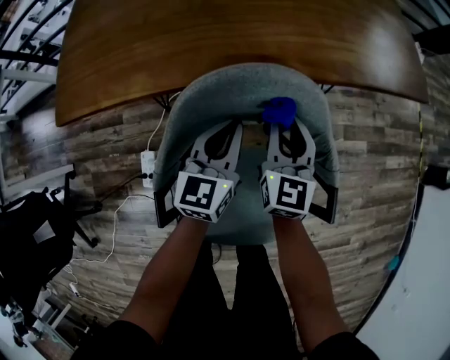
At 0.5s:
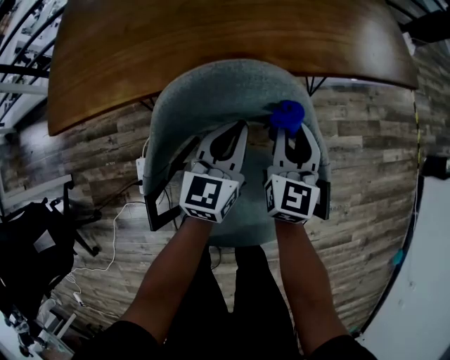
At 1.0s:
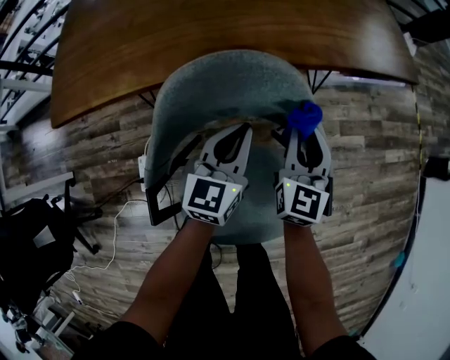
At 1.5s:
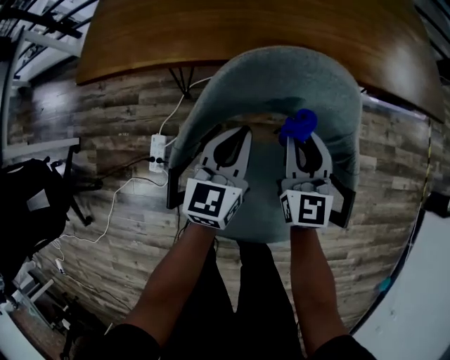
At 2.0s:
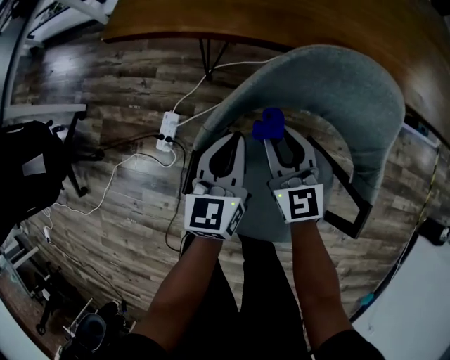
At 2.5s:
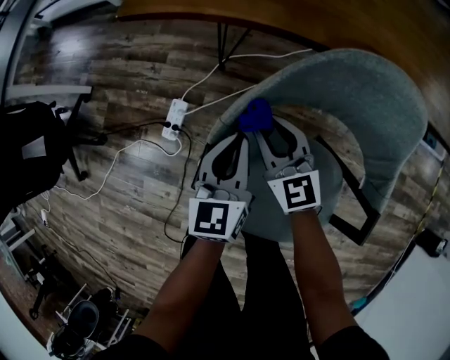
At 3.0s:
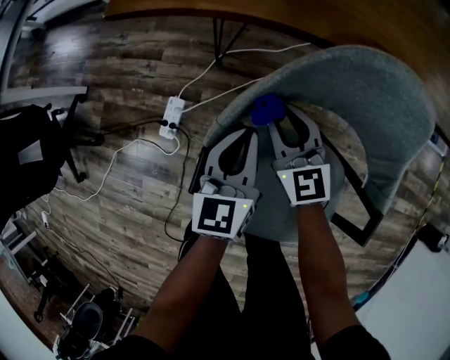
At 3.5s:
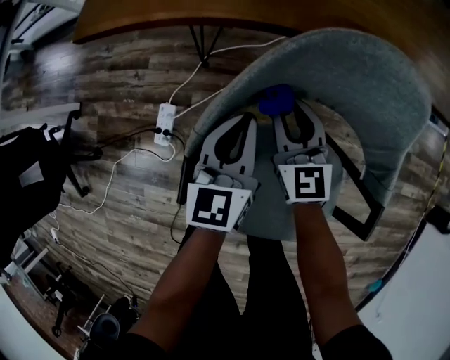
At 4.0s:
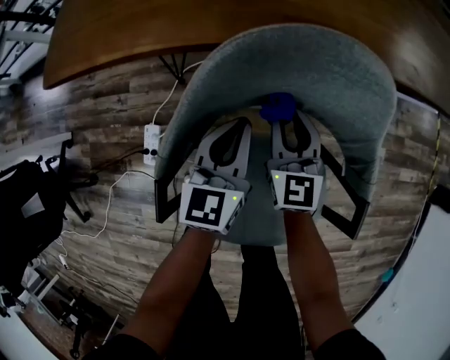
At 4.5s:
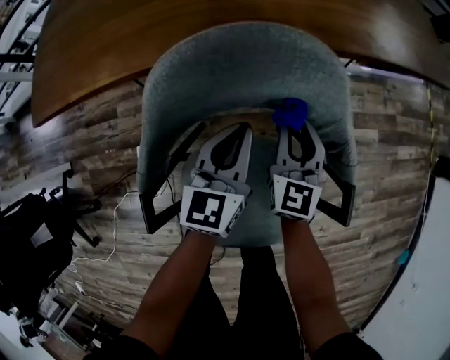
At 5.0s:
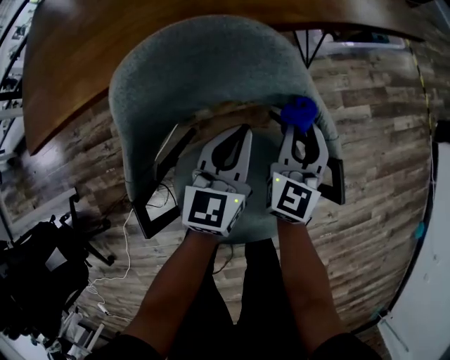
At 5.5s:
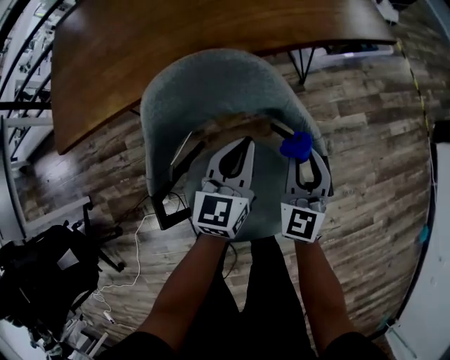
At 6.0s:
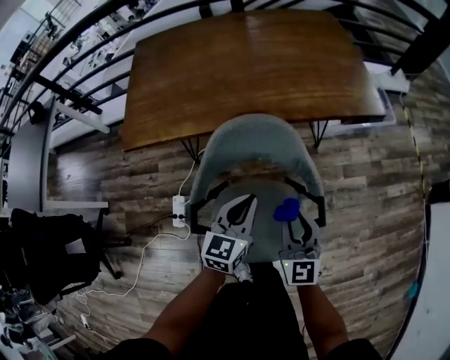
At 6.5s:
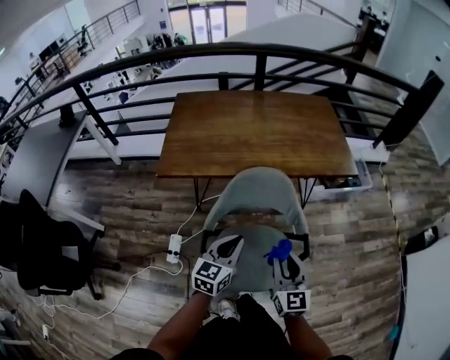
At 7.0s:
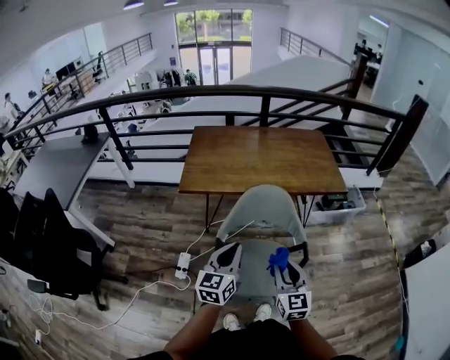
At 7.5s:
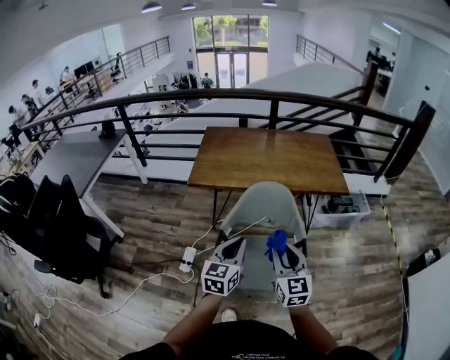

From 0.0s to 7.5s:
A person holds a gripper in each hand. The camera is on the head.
From 0.0s to 2.0s: The right gripper moves some 20 cm, and turns by approximately 40 degrees. Meanwhile the left gripper ends up about 15 cm from where it was, and changes its angle by about 30 degrees.
From 2.0s to 4.0s: The left gripper moves some 10 cm, while the right gripper moves roughly 15 cm, and rotates approximately 20 degrees.
From 4.0s to 5.5s: The right gripper ends up some 25 cm from where it was, and rotates approximately 30 degrees, while the left gripper shifts by some 15 cm.
From 5.5s to 7.5s: Both grippers move upward, some 35 cm. The right gripper rotates roughly 30 degrees.

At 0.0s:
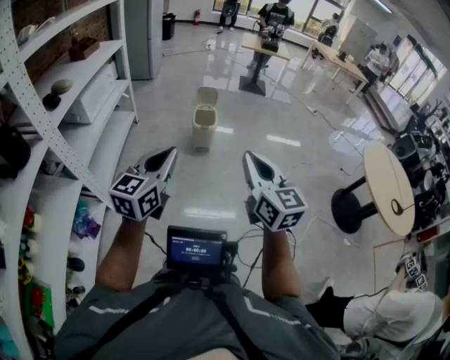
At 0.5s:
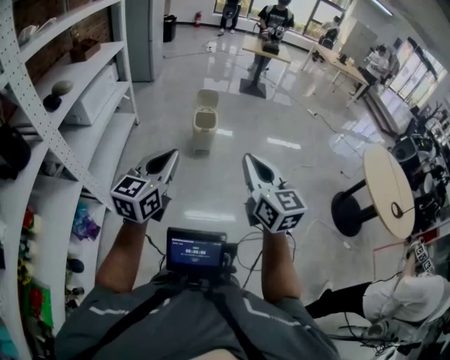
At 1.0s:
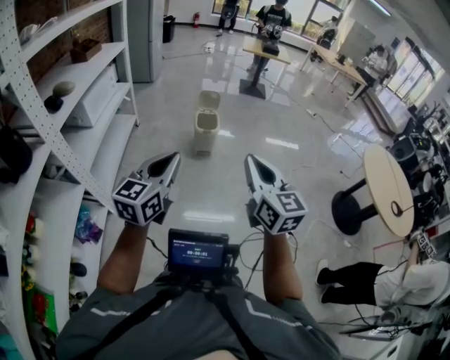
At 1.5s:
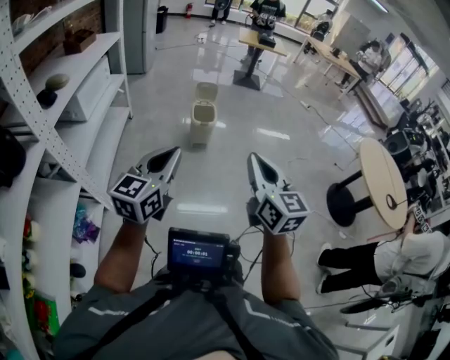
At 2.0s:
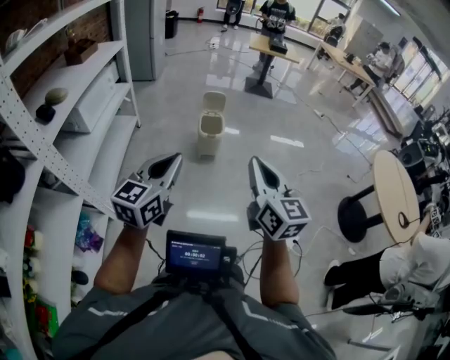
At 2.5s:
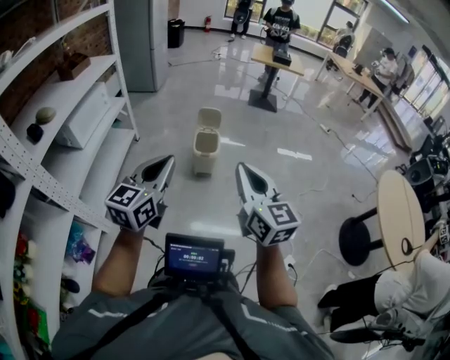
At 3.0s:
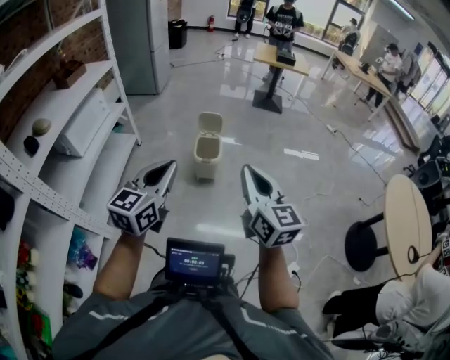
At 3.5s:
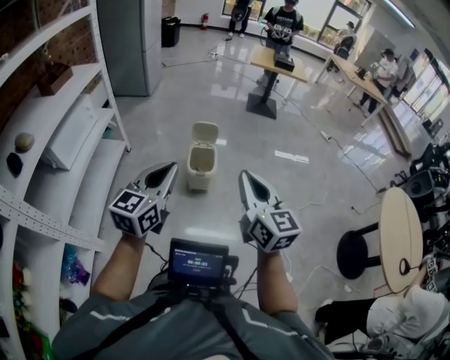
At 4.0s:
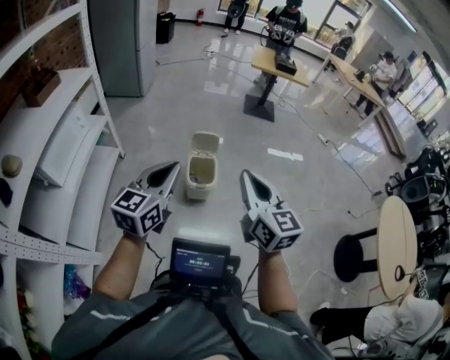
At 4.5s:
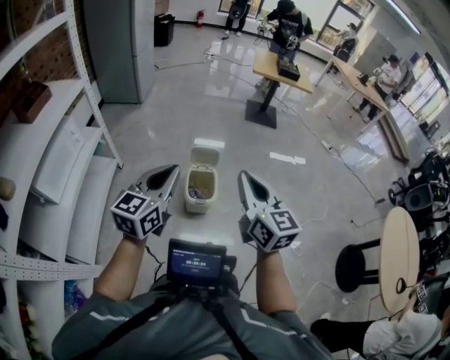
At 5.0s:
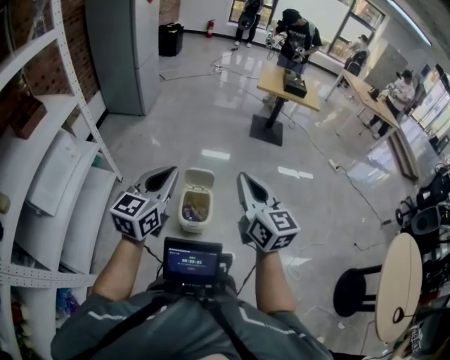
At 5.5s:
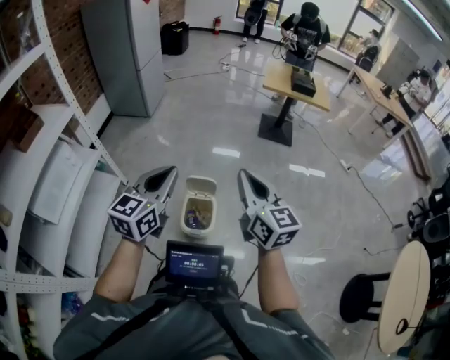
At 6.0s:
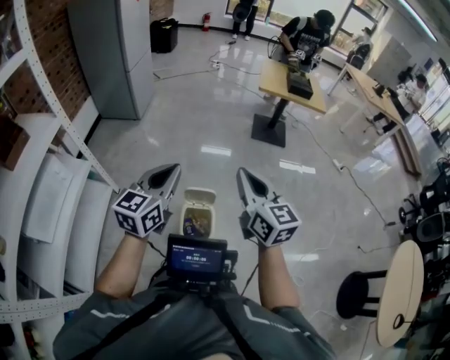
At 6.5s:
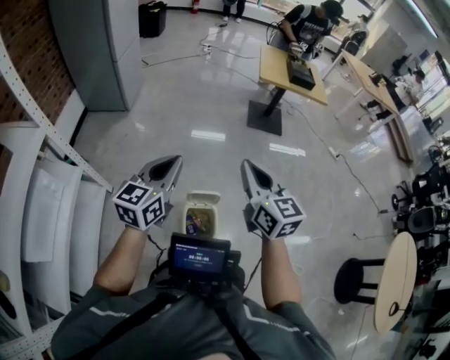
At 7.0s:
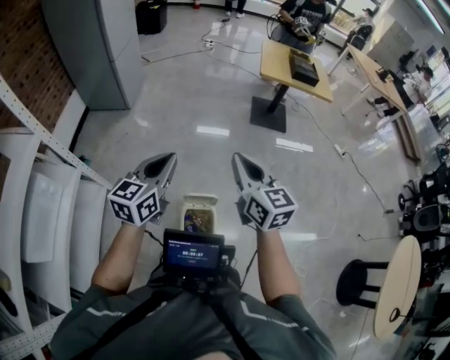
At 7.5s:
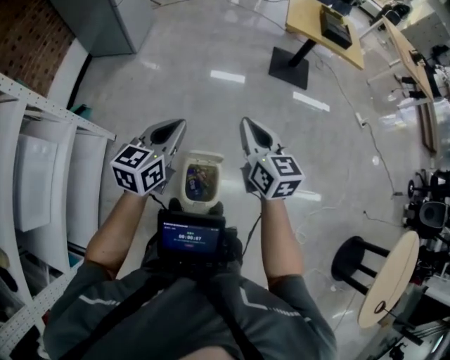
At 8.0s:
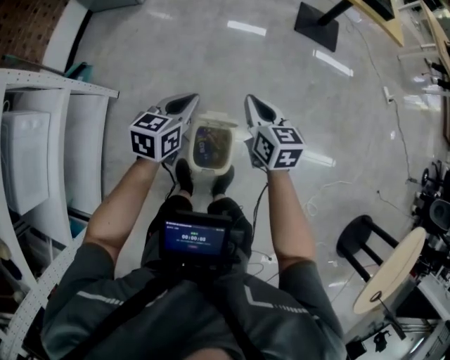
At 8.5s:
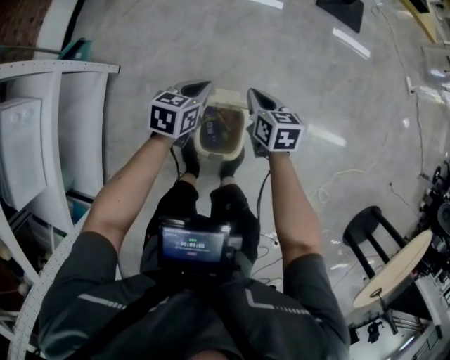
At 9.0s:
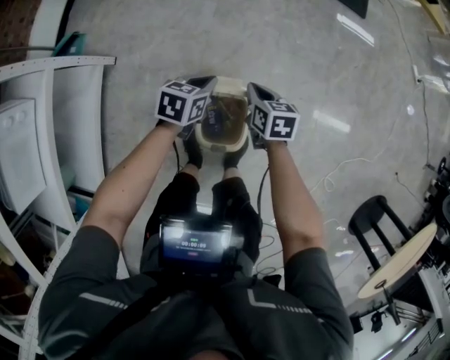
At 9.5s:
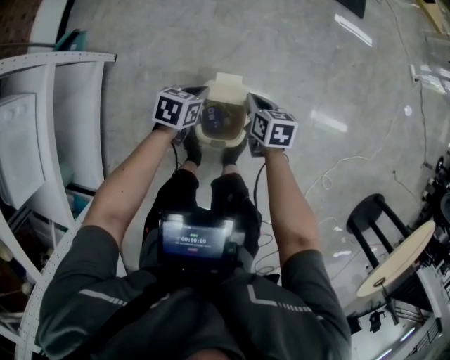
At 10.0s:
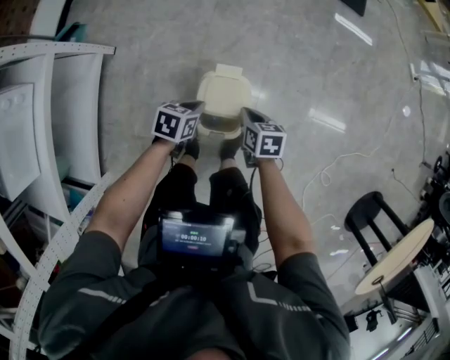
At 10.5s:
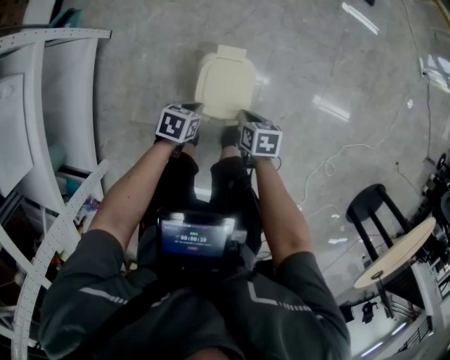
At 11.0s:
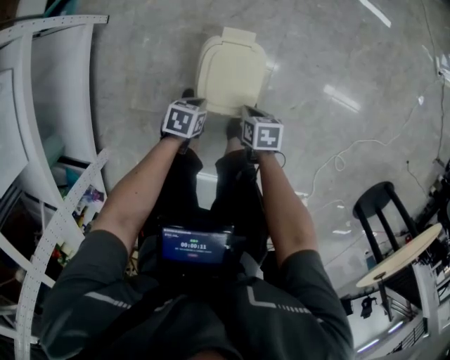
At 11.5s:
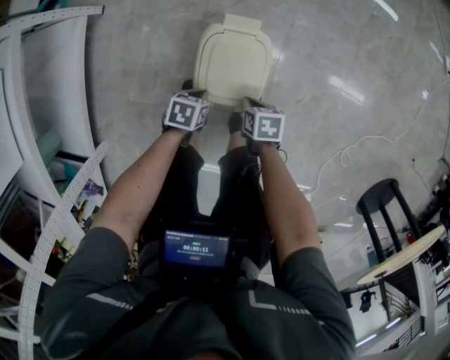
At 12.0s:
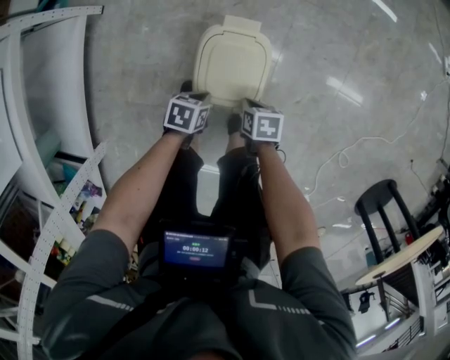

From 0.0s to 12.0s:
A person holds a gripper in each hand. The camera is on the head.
From 0.0s to 2.0s: The two grippers go roughly 10 cm forward.
From 2.0s to 4.0s: The grippers both shift forward by about 35 cm.
From 4.0s to 6.0s: The grippers both shift forward by approximately 35 cm.
From 6.0s to 8.0s: Both grippers move downward and forward, roughly 30 cm. The right gripper rotates approximately 30 degrees, while the left gripper swivels about 30 degrees.
From 8.0s to 10.0s: The two grippers go about 30 cm downward and backward. The left gripper rotates approximately 30 degrees, while the right gripper swivels roughly 30 degrees.
From 10.0s to 12.0s: Both grippers move downward, some 15 cm.

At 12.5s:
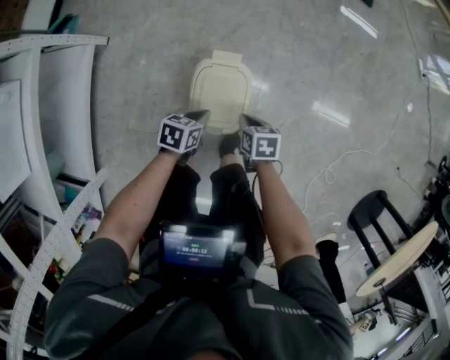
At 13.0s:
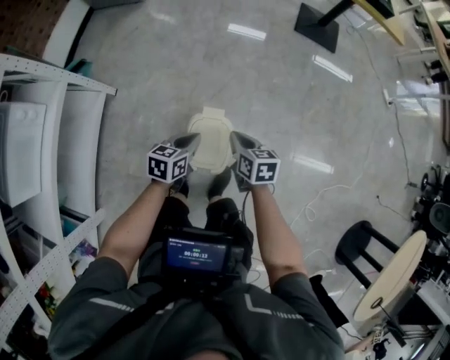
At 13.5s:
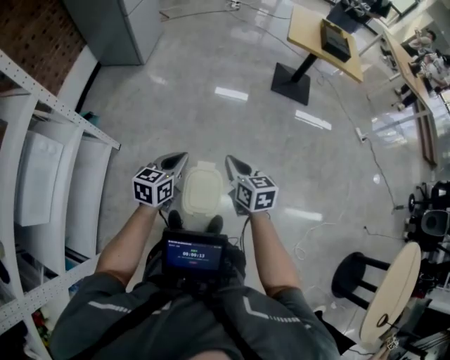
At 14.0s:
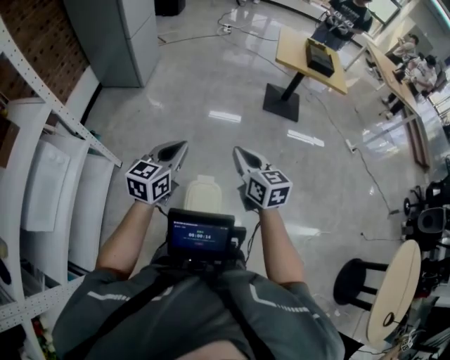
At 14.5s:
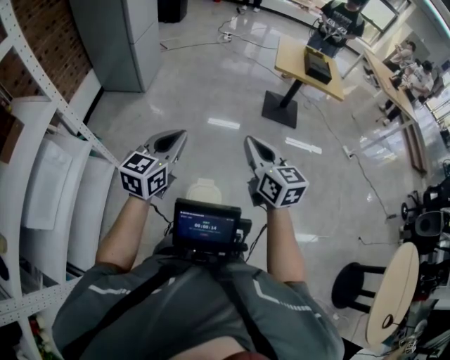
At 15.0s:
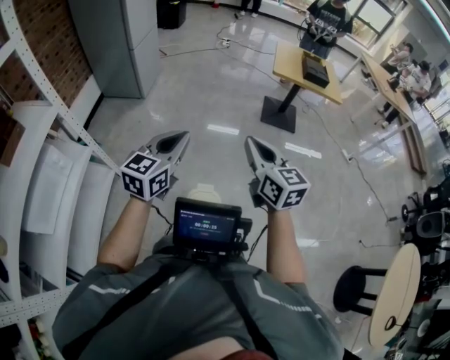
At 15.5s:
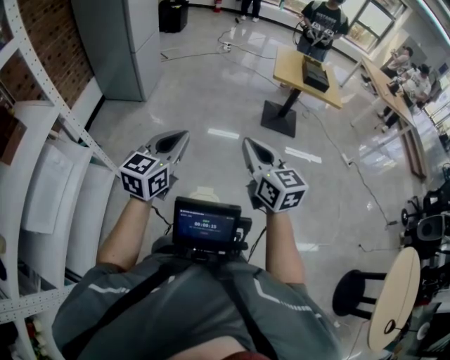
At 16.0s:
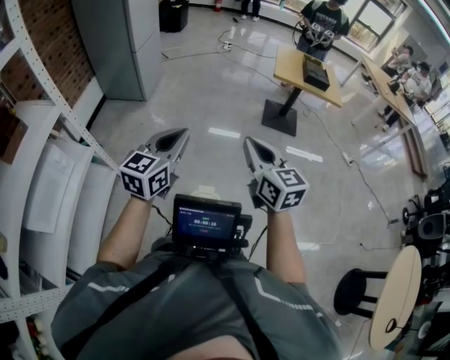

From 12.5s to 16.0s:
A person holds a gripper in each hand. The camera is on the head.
From 12.5s to 14.5s: The two grippers go approximately 50 cm upward. The left gripper tilts its fingers about 40 degrees upward; the right gripper tips its fingers upward by roughly 50 degrees.
From 14.5s to 16.0s: There are only small adjustments of the grippers.

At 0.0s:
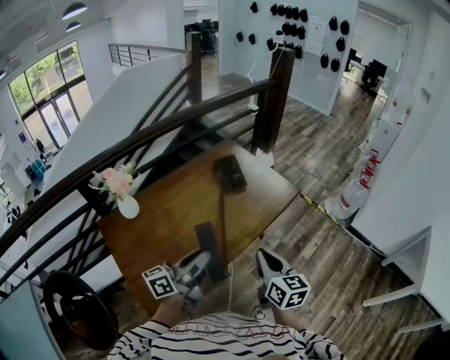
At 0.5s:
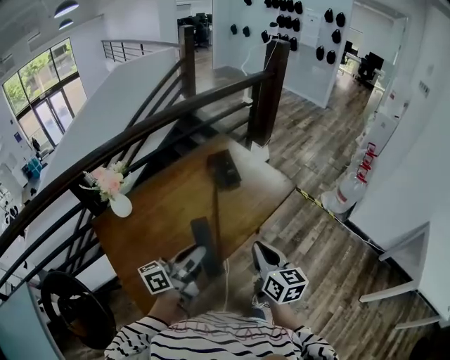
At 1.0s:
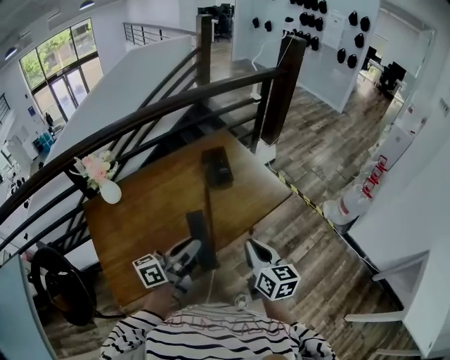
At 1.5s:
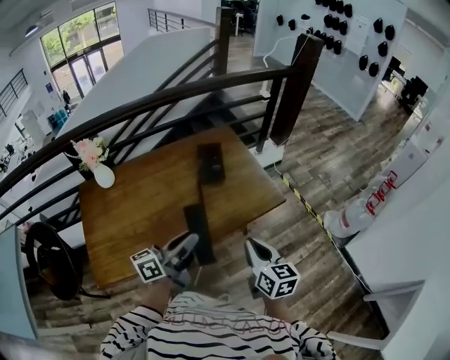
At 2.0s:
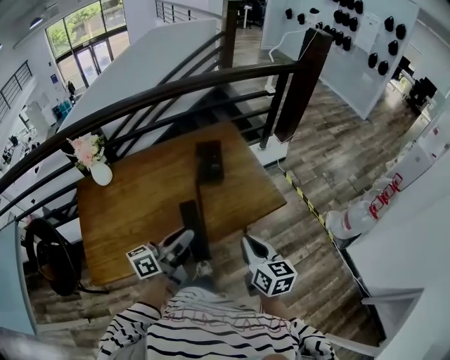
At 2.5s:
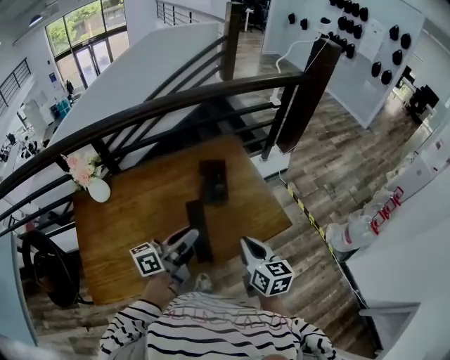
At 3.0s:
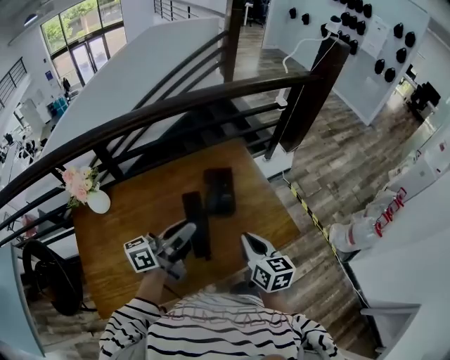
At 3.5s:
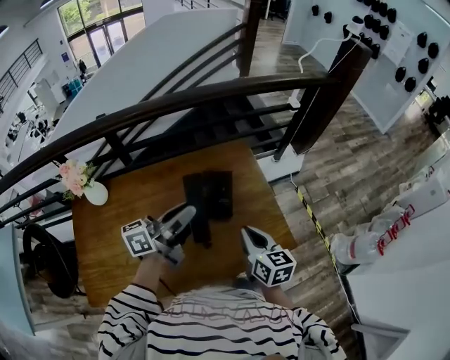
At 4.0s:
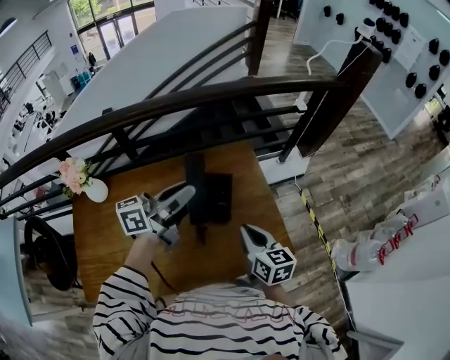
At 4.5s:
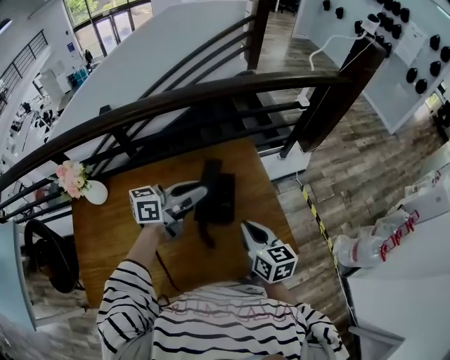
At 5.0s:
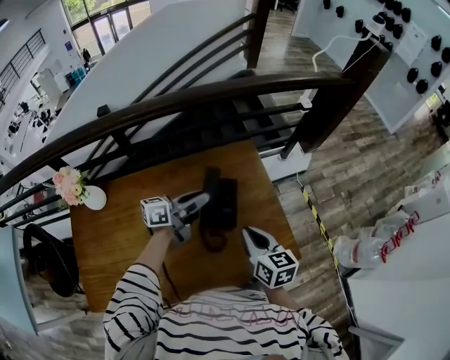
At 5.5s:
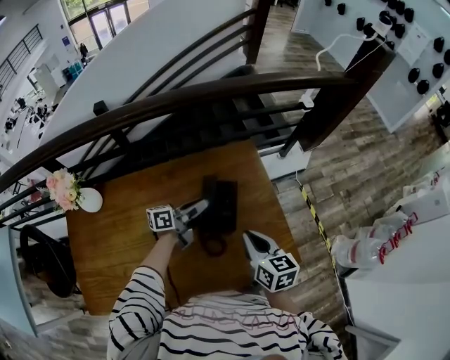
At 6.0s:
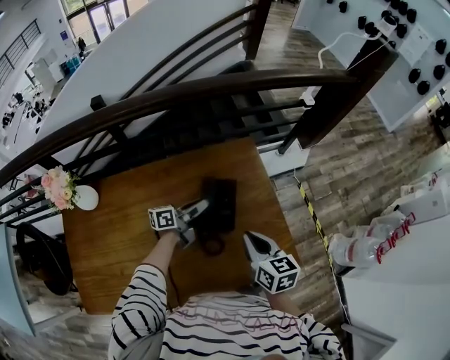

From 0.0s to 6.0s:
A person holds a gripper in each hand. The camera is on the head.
From 0.0s to 2.0s: The left gripper heads to the right and forward, covering about 30 cm. The right gripper moves forward and to the right, some 30 cm, and rotates roughly 20 degrees.
From 2.0s to 4.0s: Both grippers travel together forward, about 35 cm.
From 4.0s to 6.0s: The left gripper heads downward and forward, covering approximately 30 cm, and turns by roughly 20 degrees. Meanwhile the right gripper travels forward by roughly 5 cm.
